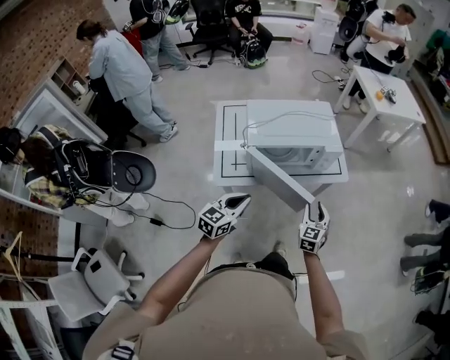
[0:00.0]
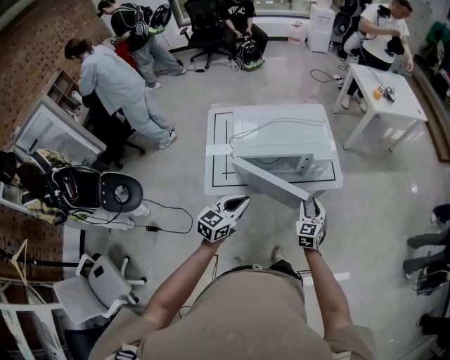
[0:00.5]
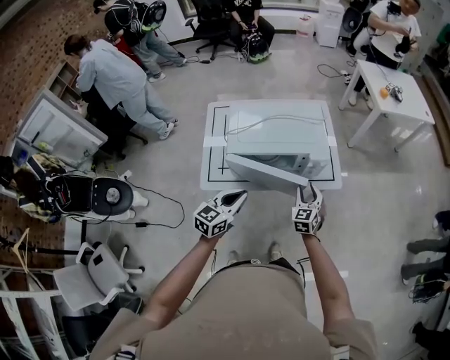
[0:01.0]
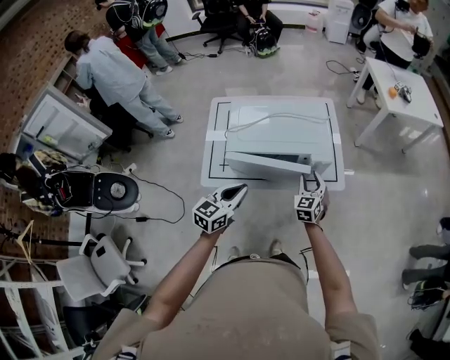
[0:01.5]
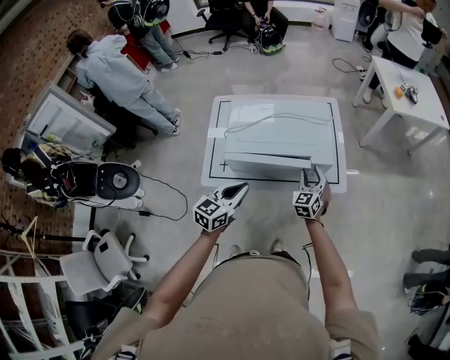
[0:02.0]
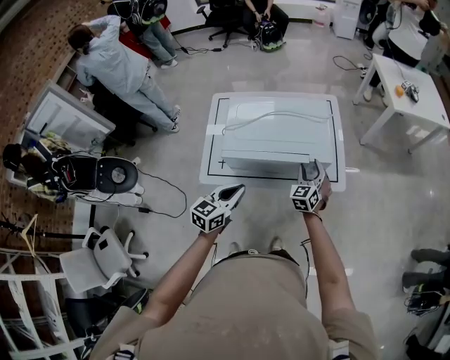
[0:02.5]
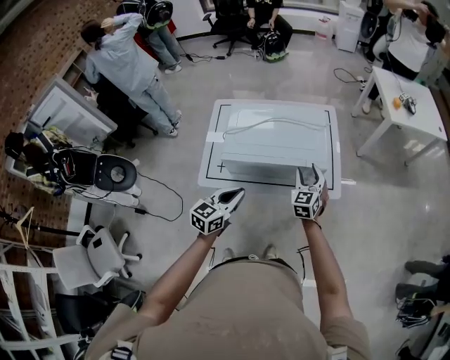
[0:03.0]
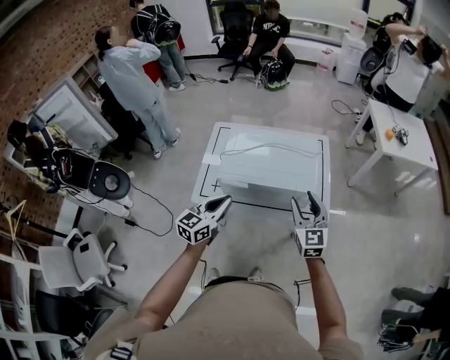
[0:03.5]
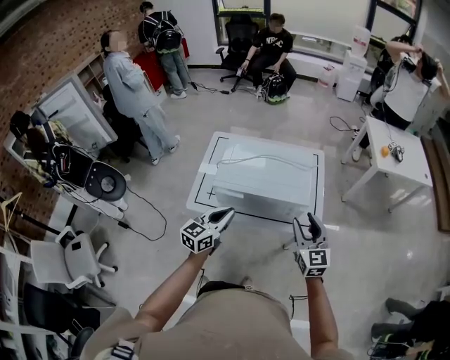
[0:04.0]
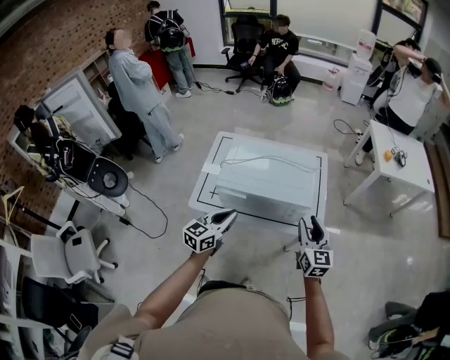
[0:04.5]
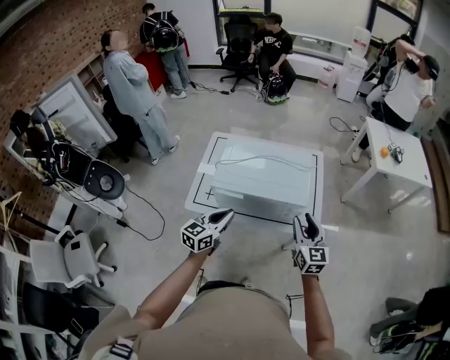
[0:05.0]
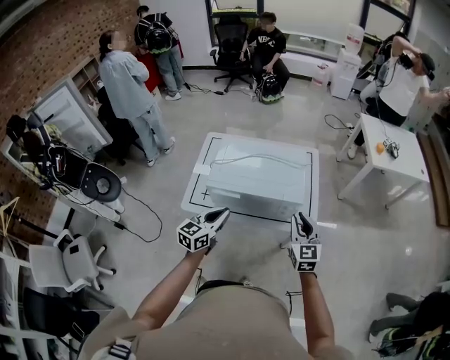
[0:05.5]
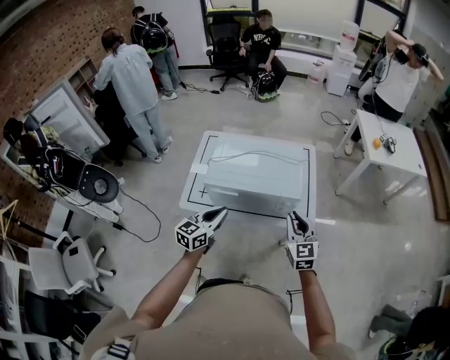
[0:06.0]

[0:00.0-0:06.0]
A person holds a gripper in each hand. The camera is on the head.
0:00.0 to 0:02.0: The left gripper is displaced forward and to the right by approximately 15 cm. Meanwhile the right gripper shifts roughly 25 cm forward.
0:02.0 to 0:04.0: The right gripper goes approximately 20 cm upward and backward, and turns by some 30 degrees.
0:04.0 to 0:06.0: The right gripper closes.

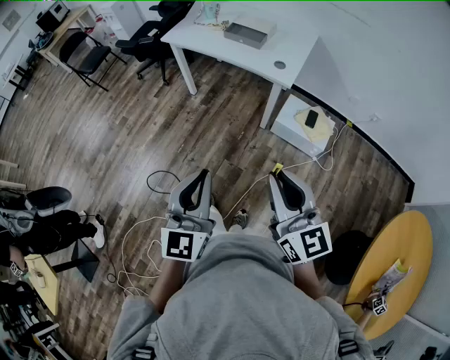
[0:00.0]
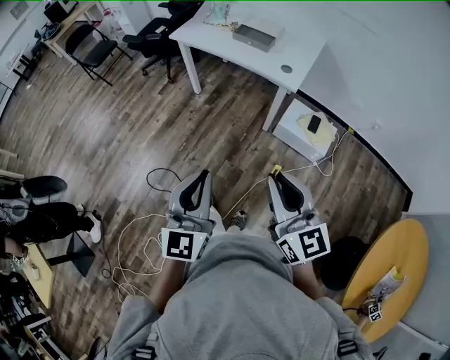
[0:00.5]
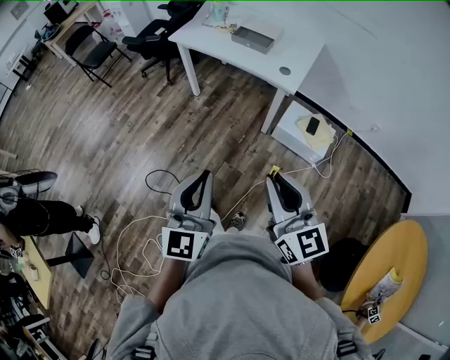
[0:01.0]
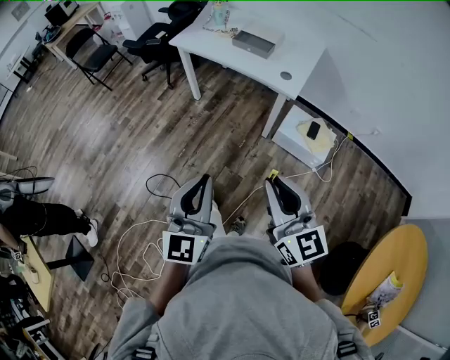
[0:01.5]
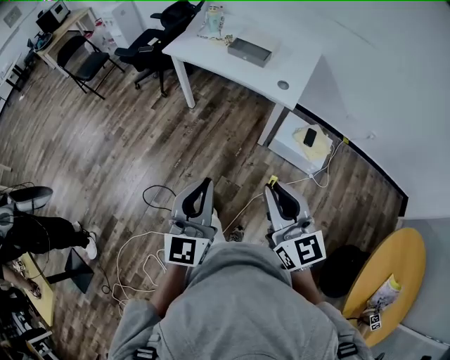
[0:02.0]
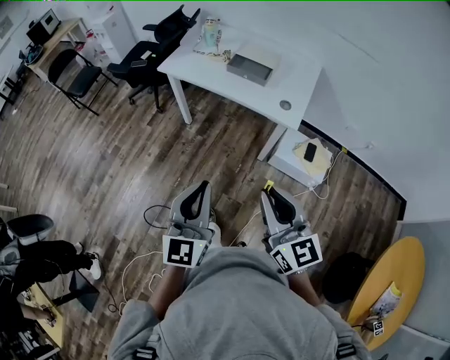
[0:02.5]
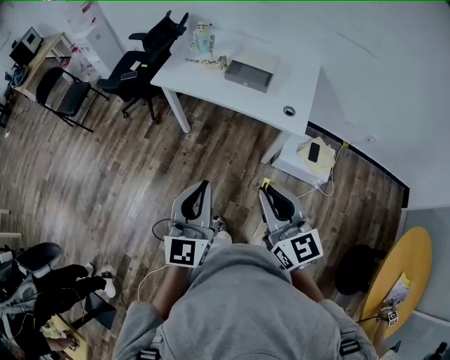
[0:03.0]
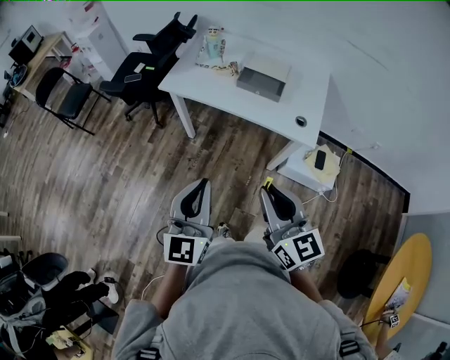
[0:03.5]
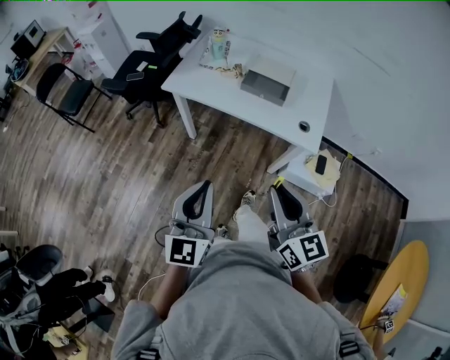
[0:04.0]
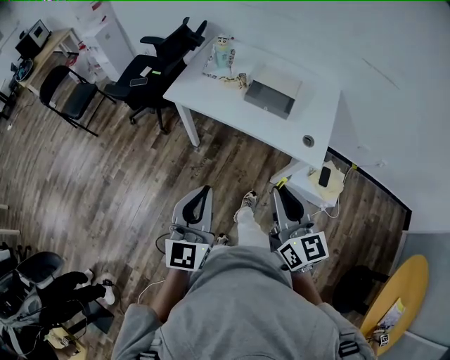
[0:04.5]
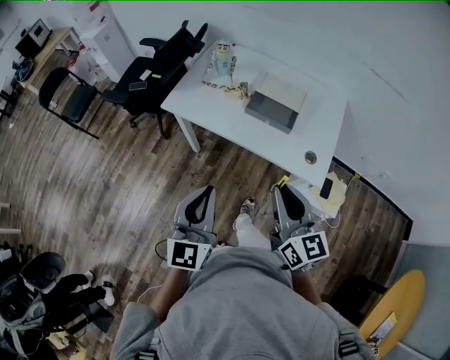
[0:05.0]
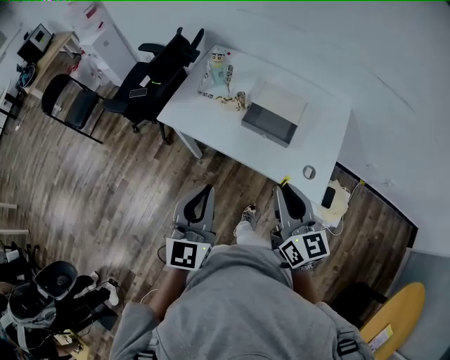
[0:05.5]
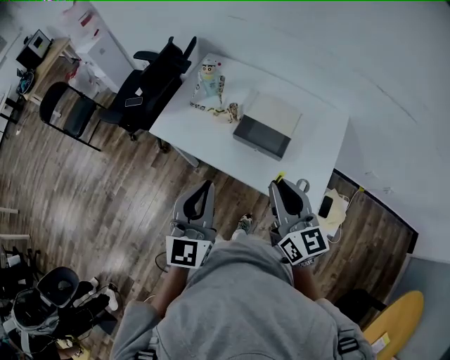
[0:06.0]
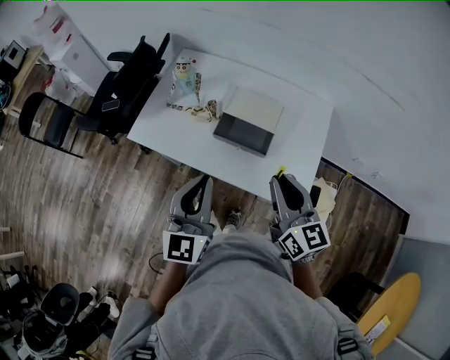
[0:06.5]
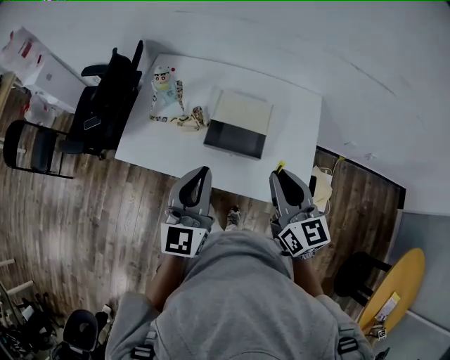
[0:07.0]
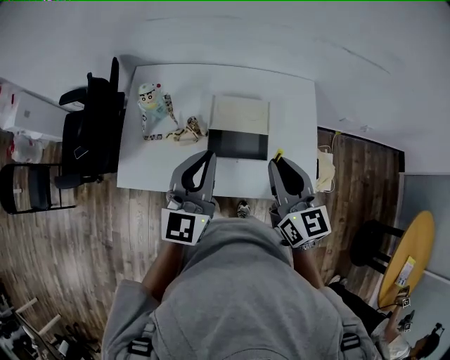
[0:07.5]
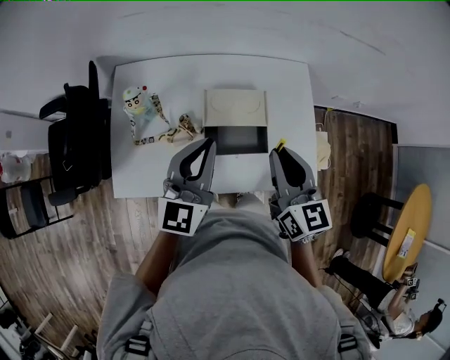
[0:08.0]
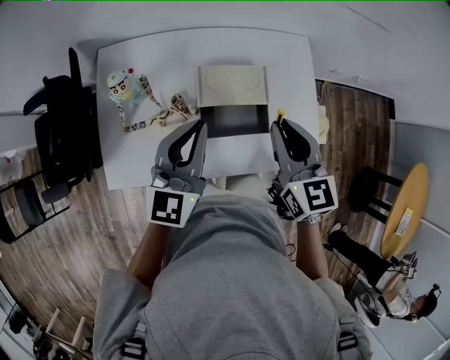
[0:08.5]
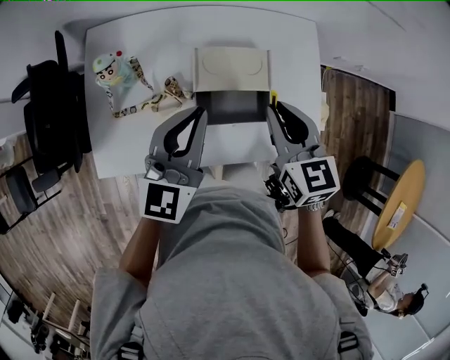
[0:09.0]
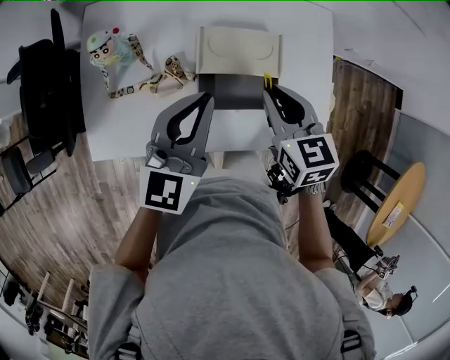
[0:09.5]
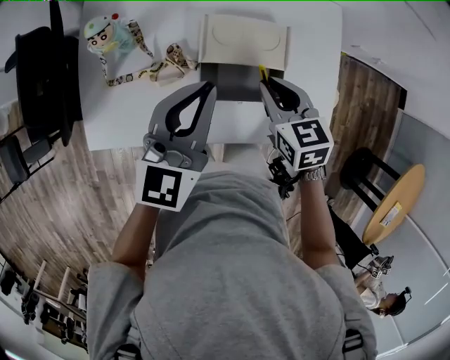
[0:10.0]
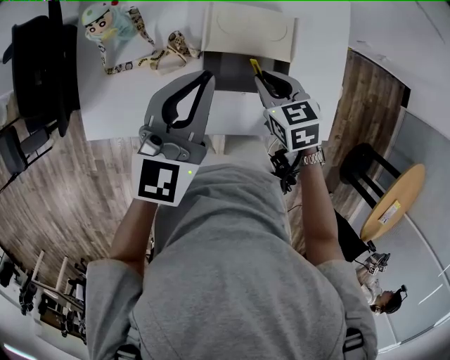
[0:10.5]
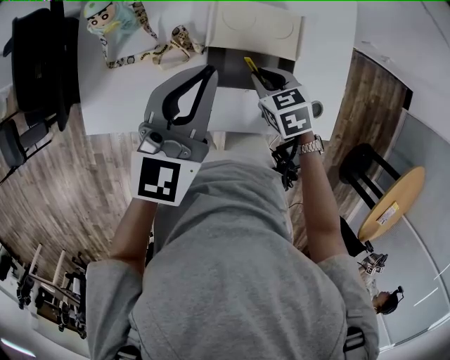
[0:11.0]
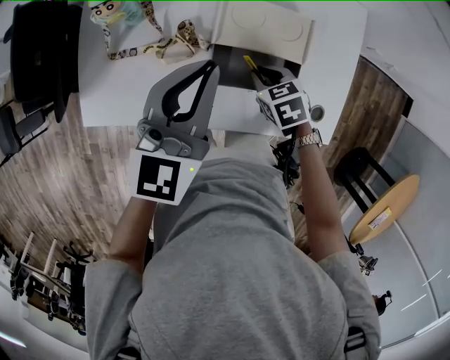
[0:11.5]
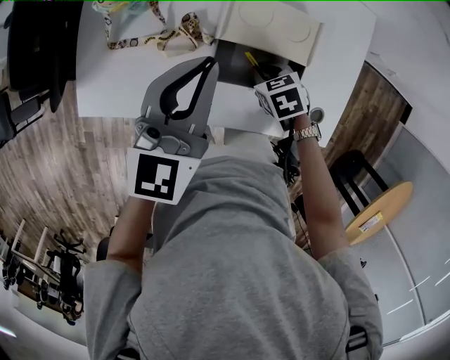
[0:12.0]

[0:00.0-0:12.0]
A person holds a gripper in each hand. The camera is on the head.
0:00.0 to 0:02.0: Both grippers travel together forward, some 5 cm.
0:02.0 to 0:04.0: The two grippers go about 30 cm forward and to the left.
0:04.0 to 0:06.0: The left gripper goes roughly 30 cm forward and to the right, while the right gripper shifts about 30 cm forward.
0:06.0 to 0:08.0: The left gripper ends up about 30 cm from where it was, and changes its angle by approximately 40 degrees; the right gripper changes place by roughly 20 cm, and changes its angle by roughly 30 degrees.
0:08.0 to 0:10.0: The right gripper goes some 20 cm downward, and angles its fingers downward, by approximately 30 degrees. The left gripper is displaced downward by some 5 cm.
0:10.0 to 0:12.0: The right gripper travels downward by some 15 cm, and turns by some 30 degrees.

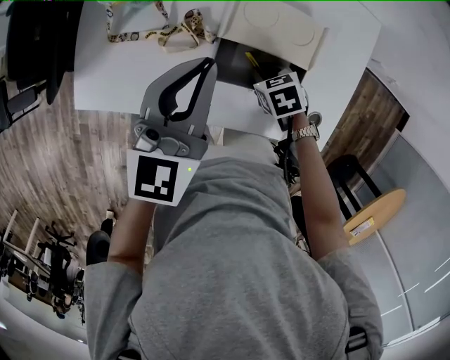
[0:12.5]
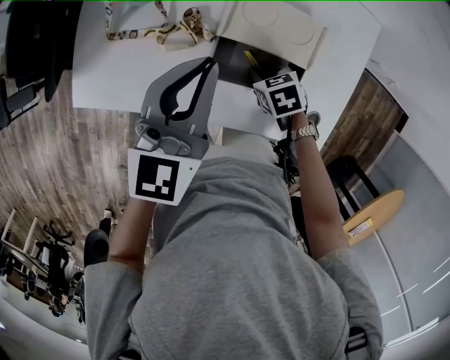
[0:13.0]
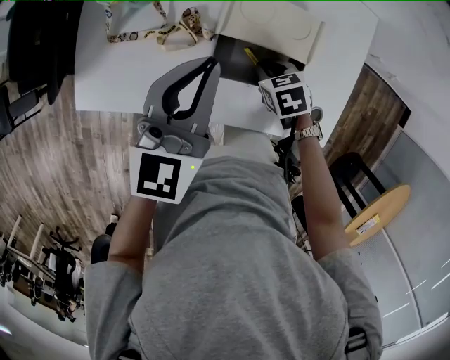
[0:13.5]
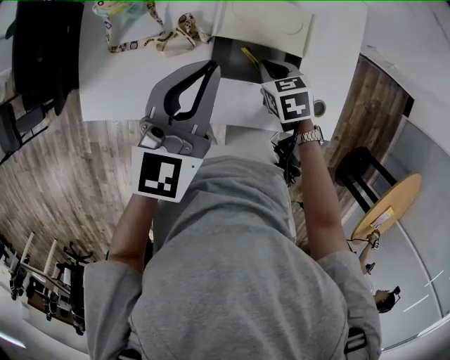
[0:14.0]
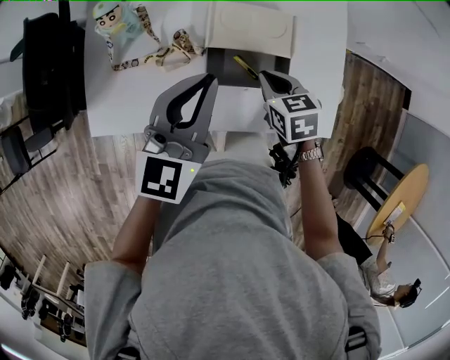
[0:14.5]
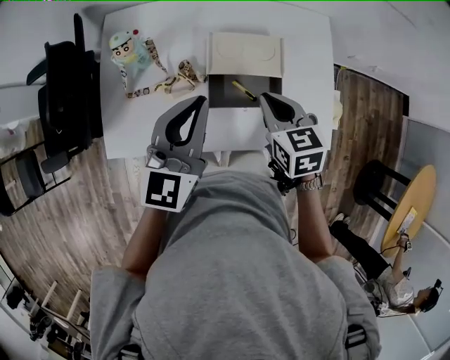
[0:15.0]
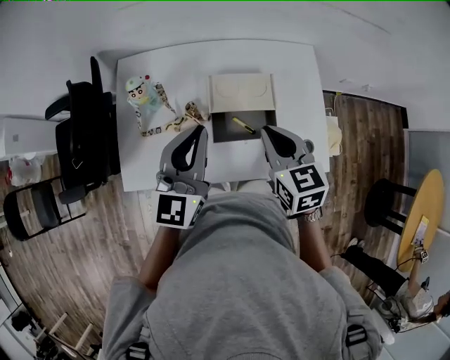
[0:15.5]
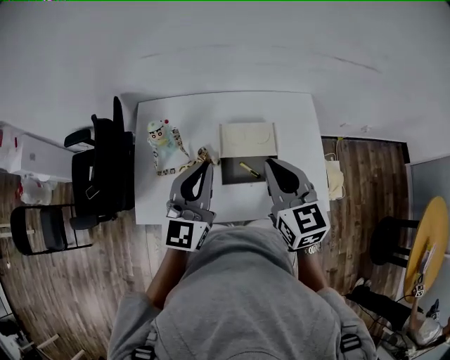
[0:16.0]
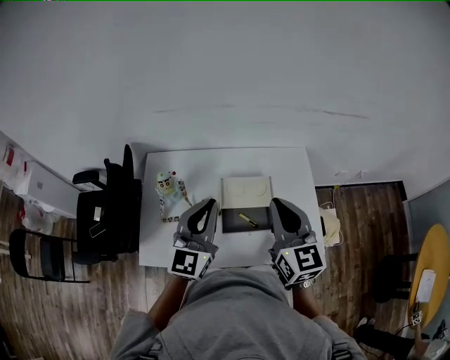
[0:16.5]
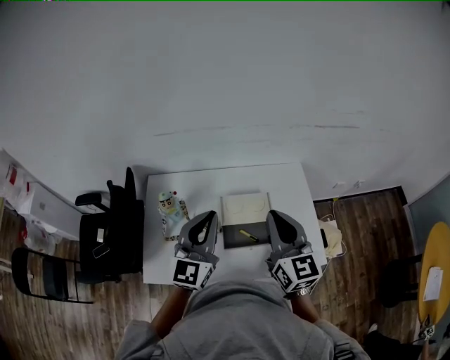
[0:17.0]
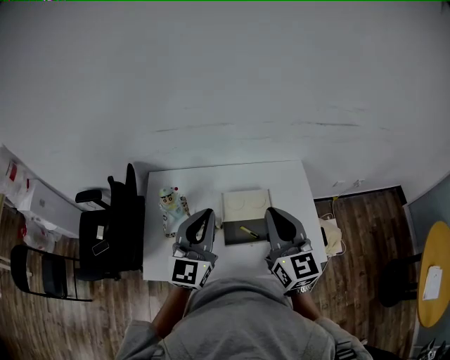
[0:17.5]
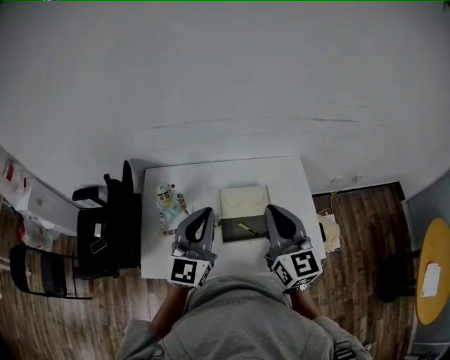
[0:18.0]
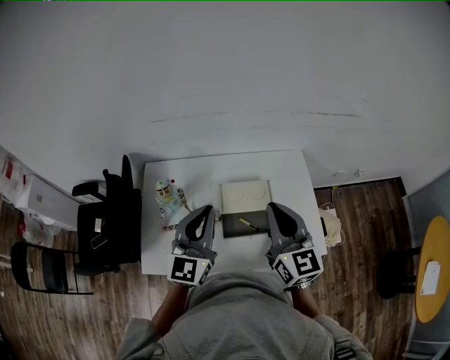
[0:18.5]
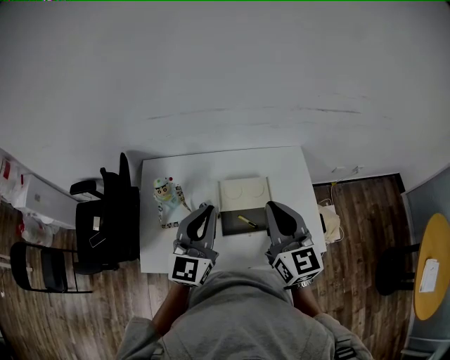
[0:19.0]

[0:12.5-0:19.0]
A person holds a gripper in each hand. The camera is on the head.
0:12.5 to 0:14.5: The right gripper shifts about 10 cm upward, and changes its angle by some 30 degrees. The left gripper ends up roughly 5 cm from where it was.
0:14.5 to 0:17.0: The right gripper moves upward, roughly 35 cm, and points its fingers about 50 degrees further upward. The left gripper is displaced upward by roughly 15 cm, and swivels roughly 20 degrees.
0:17.0 to 0:19.0: The grippers stay close to where they were, moving slightly.

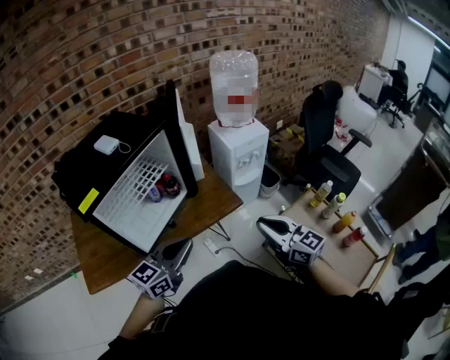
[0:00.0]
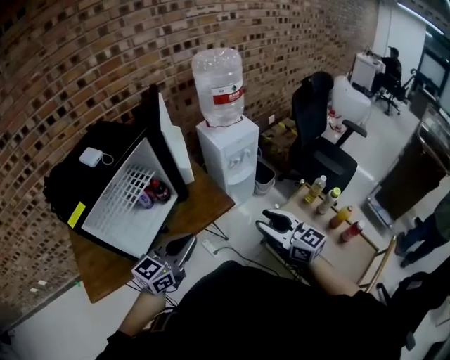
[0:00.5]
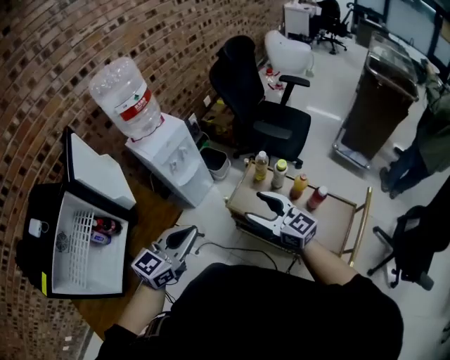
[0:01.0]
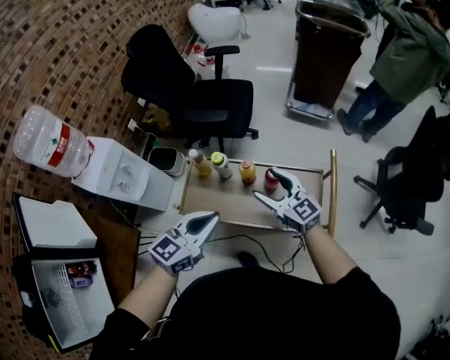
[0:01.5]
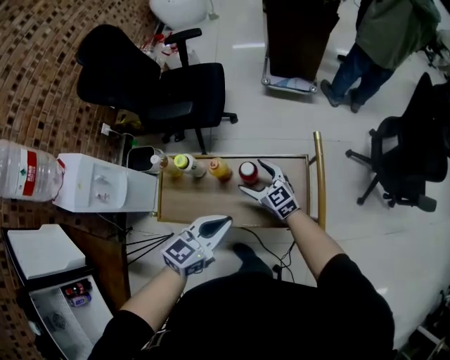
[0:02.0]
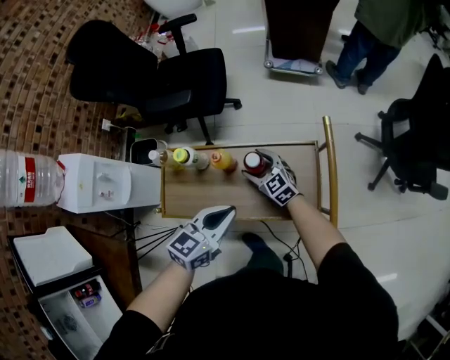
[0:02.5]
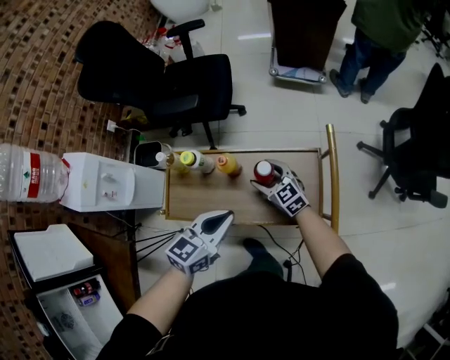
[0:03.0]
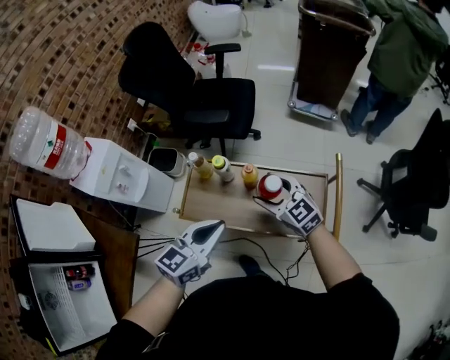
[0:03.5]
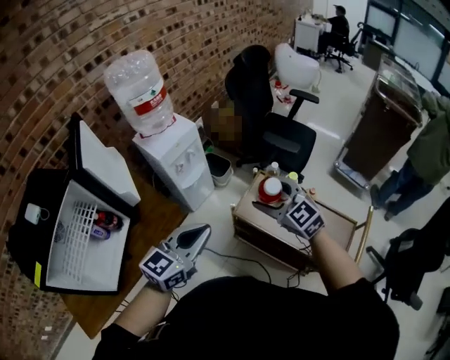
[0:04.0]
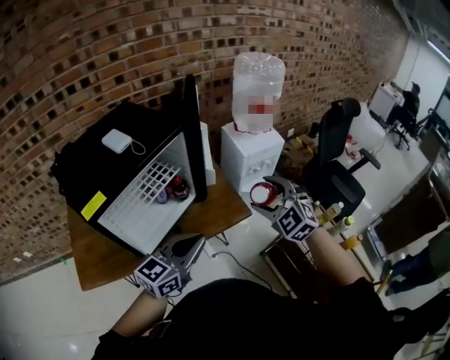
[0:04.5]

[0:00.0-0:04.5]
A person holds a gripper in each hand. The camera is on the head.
0:00.0 to 0:02.0: Both grippers are carried about 70 cm. The left gripper rotates roughly 70 degrees. The right gripper changes its angle by some 60 degrees, and opens its fingers.
0:02.0 to 0:04.5: The two grippers travel together, about 70 cm. The right gripper rotates around the line of its fingers by about 60 degrees, counterclockwise from behind. The left gripper changes its angle by some 70 degrees.
